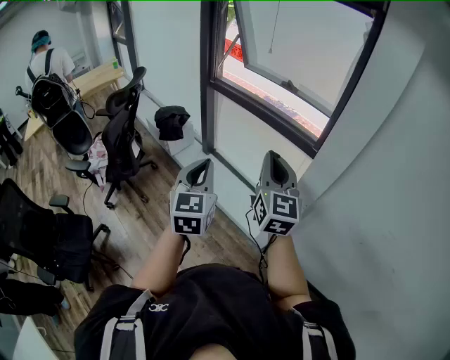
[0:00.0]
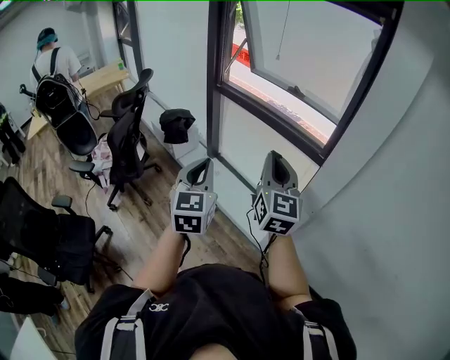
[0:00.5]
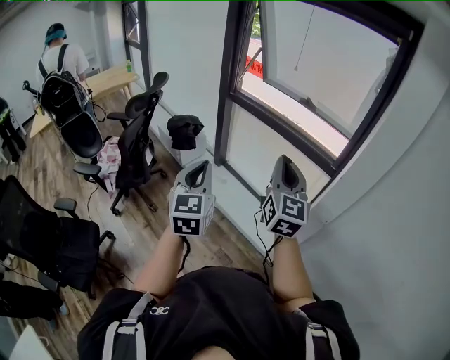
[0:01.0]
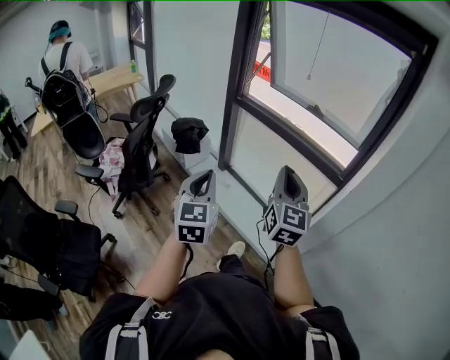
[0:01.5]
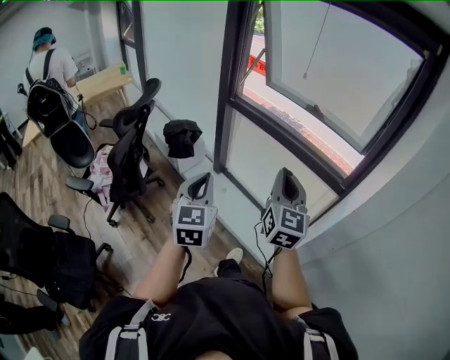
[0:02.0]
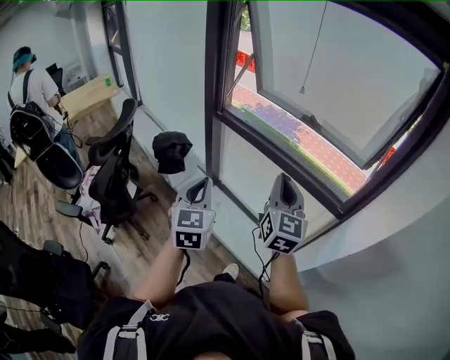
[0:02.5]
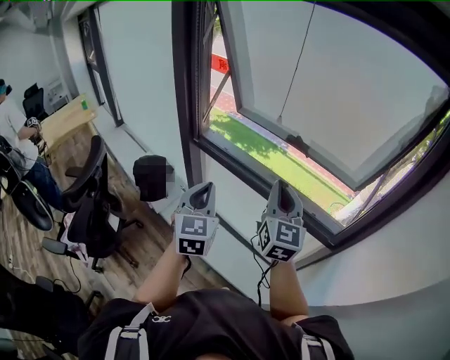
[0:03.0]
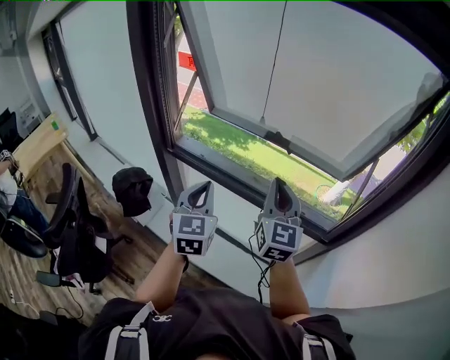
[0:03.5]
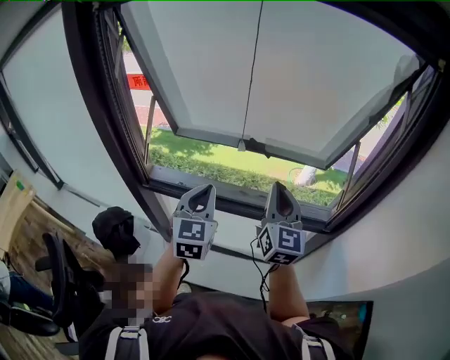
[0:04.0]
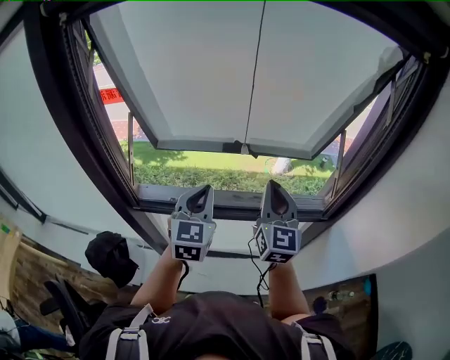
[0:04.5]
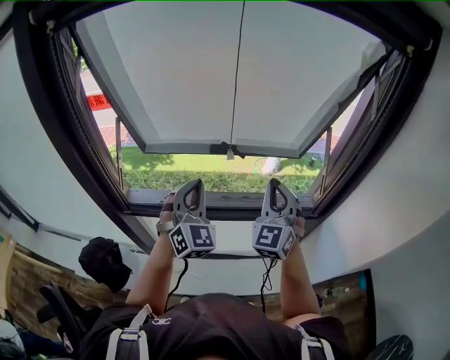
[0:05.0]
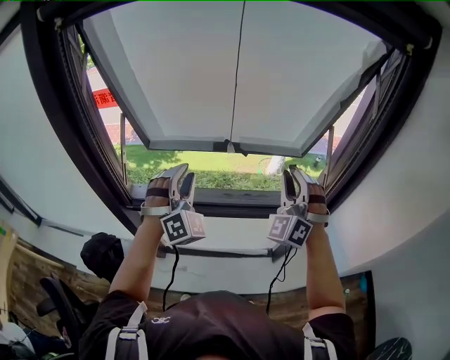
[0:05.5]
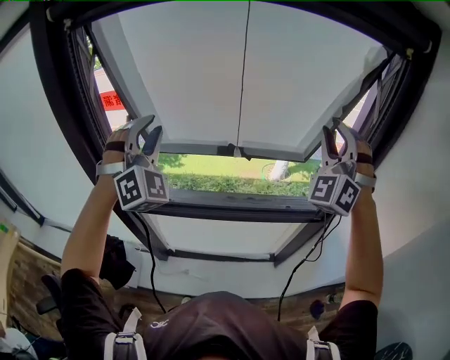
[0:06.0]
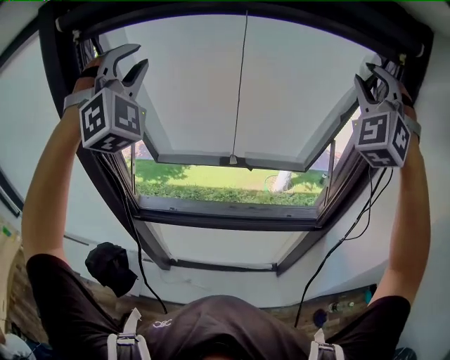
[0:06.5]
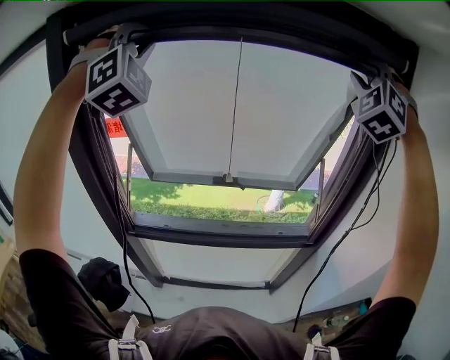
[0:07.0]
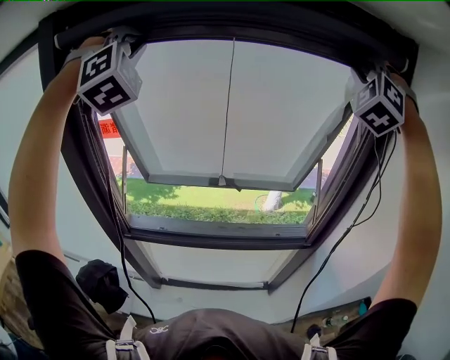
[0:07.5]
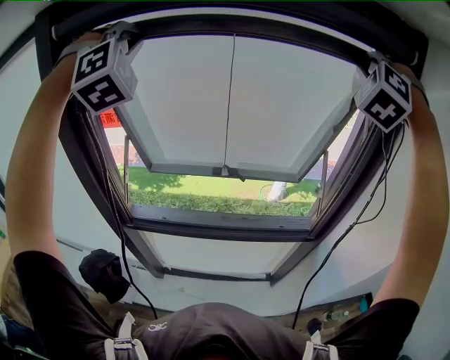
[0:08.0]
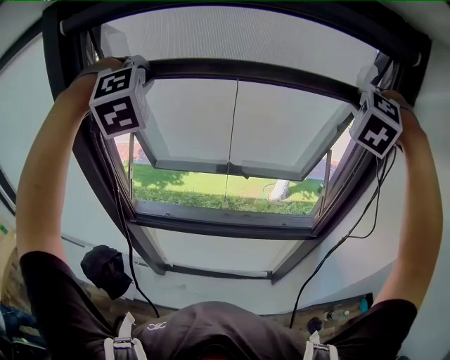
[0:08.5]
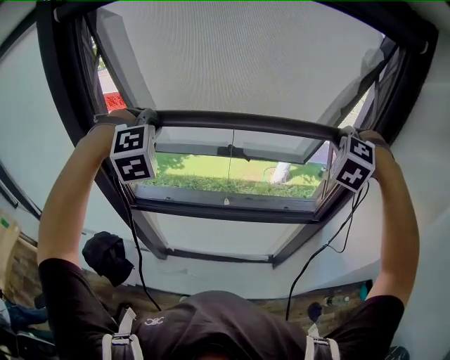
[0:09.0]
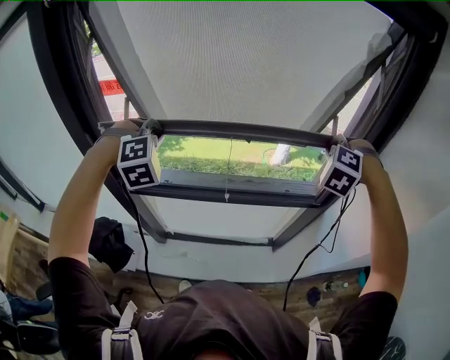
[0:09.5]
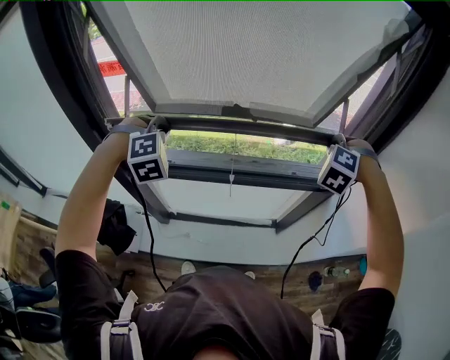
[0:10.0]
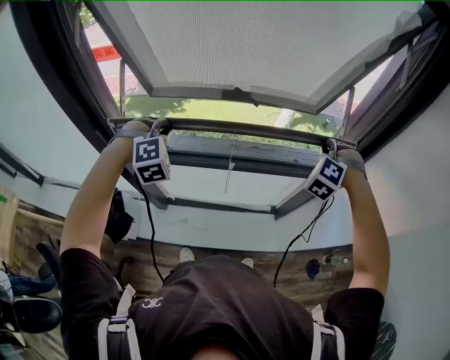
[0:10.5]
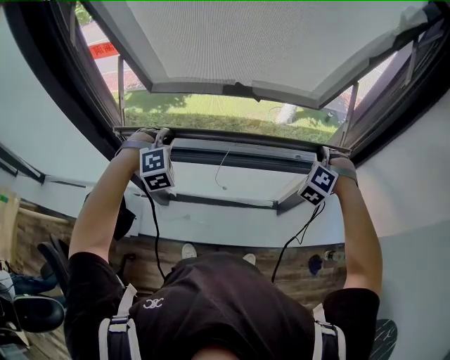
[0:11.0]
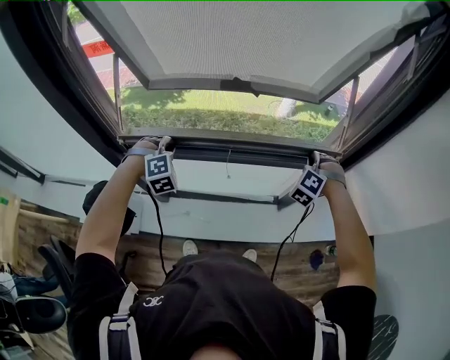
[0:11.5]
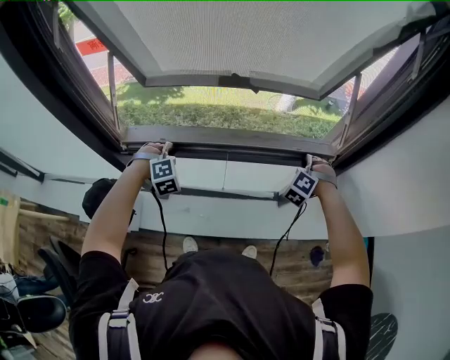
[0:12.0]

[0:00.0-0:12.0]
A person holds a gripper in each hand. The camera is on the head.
0:00.0 to 0:02.0: The two grippers go roughly 20 cm forward and to the left.
0:02.0 to 0:04.0: Both grippers are carried some 50 cm. The right gripper swivels approximately 30 degrees; the left gripper rotates roughly 40 degrees.
0:04.0 to 0:06.0: The left gripper goes some 20 cm upward and to the left, rotates around the line of its fingers by approximately 60 degrees, clockwise from behind, and opens up; the right gripper moves upward and to the right, roughly 20 cm, twists some 80 degrees counterclockwise, seen from behind, and opens its fingers.
0:06.0 to 0:08.0: The two grippers go approximately 25 cm upward. The right gripper turns by approximately 20 degrees, and closes. Meanwhile the left gripper closes.
0:08.0 to 0:10.0: Both grippers move downward, approximately 40 cm. The left gripper angles its fingers downward, by about 40 degrees. The right gripper tilts its fingers some 40 degrees downward.
0:10.0 to 0:12.0: The grippers both shift downward by approximately 25 cm.

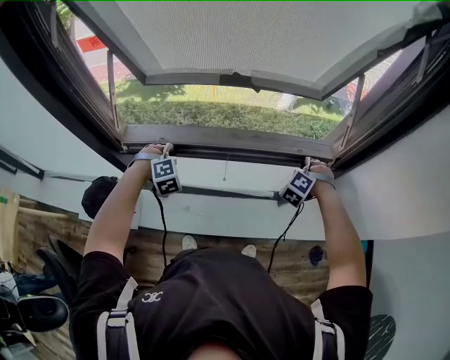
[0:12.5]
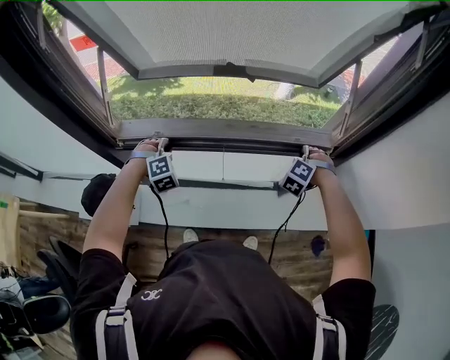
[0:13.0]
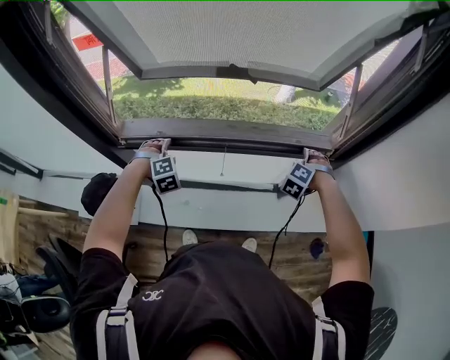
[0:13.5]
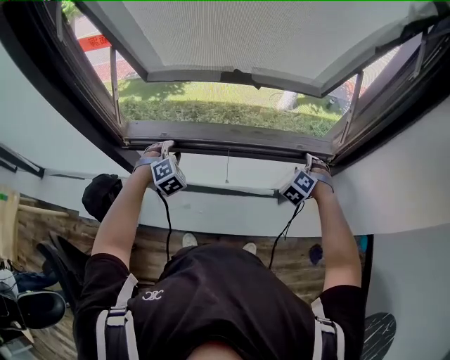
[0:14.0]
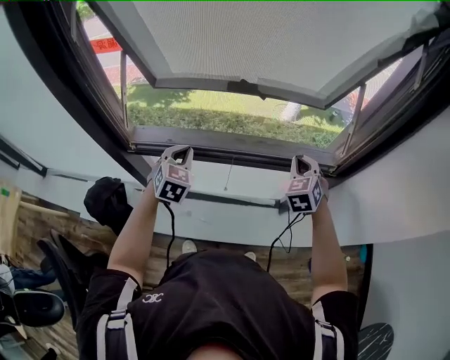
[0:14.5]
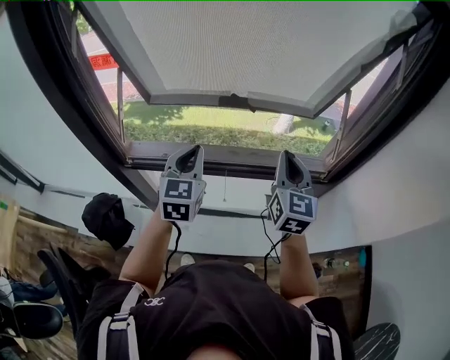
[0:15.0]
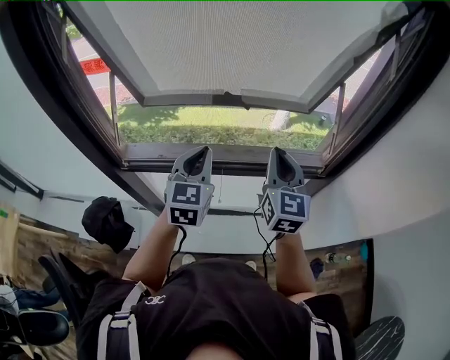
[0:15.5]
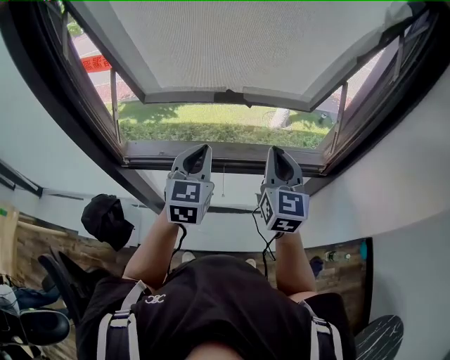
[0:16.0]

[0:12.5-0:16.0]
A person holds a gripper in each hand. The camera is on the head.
0:12.5 to 0:14.5: The left gripper goes approximately 10 cm upward, twists about 50 degrees counterclockwise, seen from behind, and opens and closes again, while the right gripper shifts approximately 15 cm upward and to the left, rotates around the line of its fingers by about 40 degrees, clockwise from behind, and opens and closes again.
0:14.5 to 0:16.0: The left gripper travels upward and to the right by roughly 15 cm, and turns by some 20 degrees. The right gripper travels upward and to the left by approximately 15 cm, and turns by roughly 40 degrees.

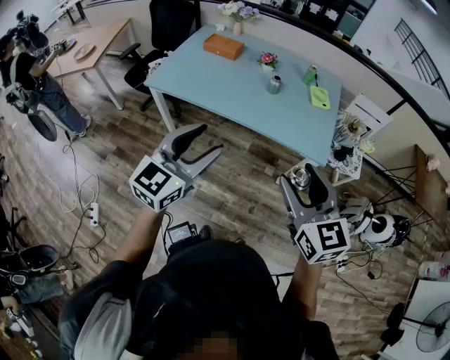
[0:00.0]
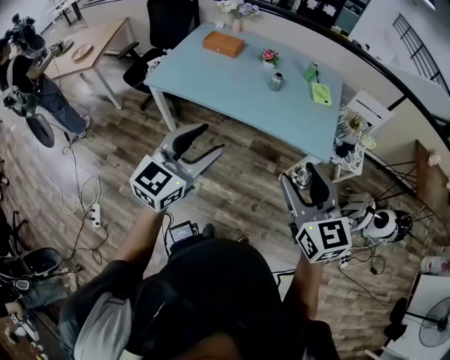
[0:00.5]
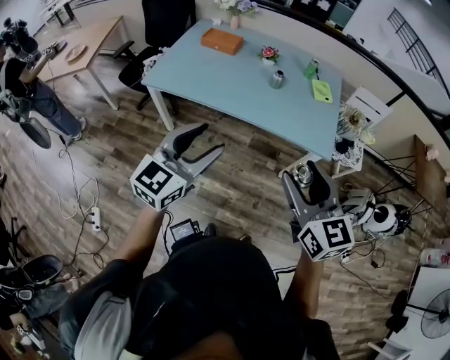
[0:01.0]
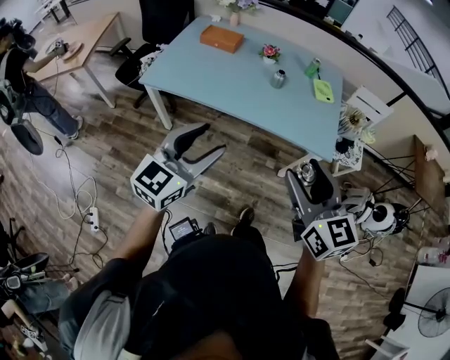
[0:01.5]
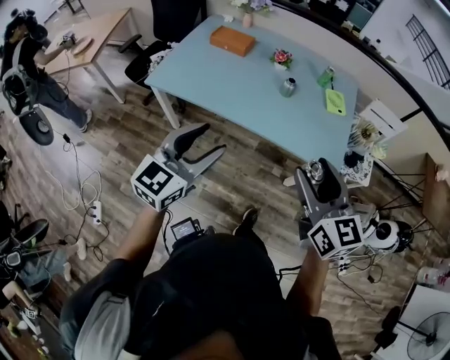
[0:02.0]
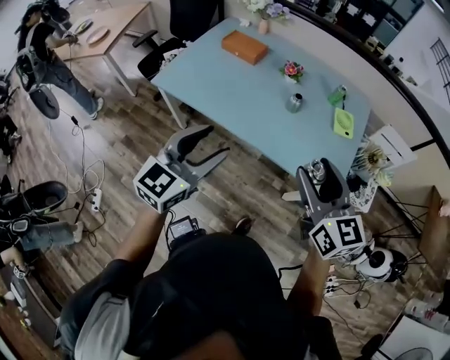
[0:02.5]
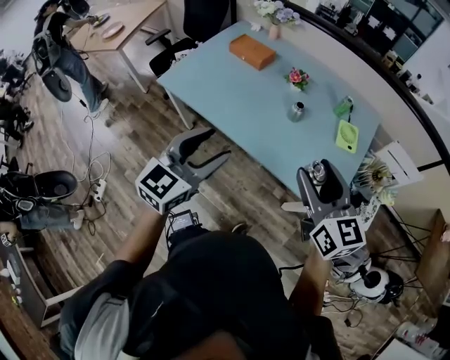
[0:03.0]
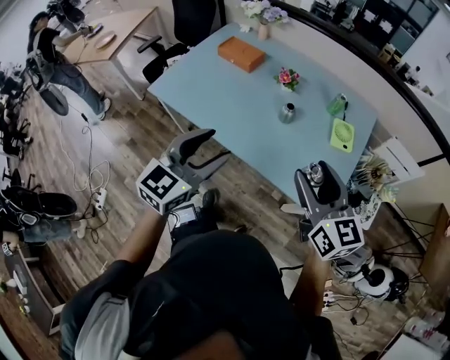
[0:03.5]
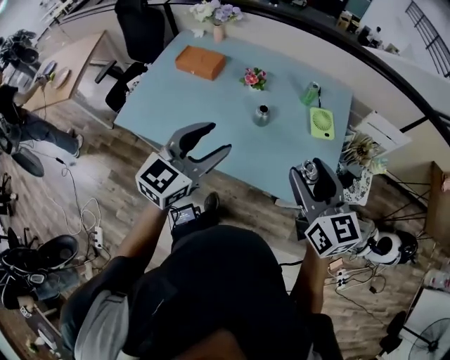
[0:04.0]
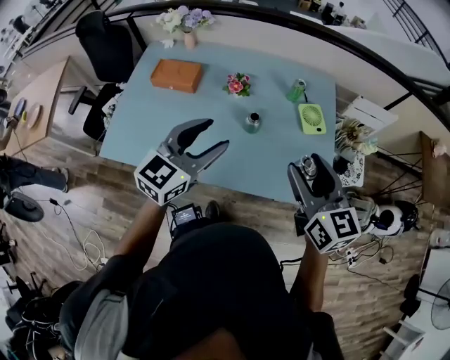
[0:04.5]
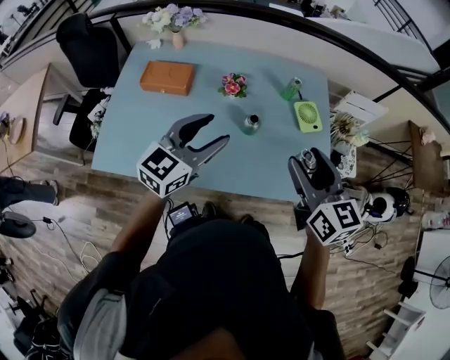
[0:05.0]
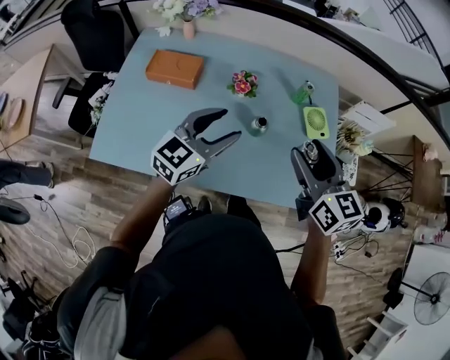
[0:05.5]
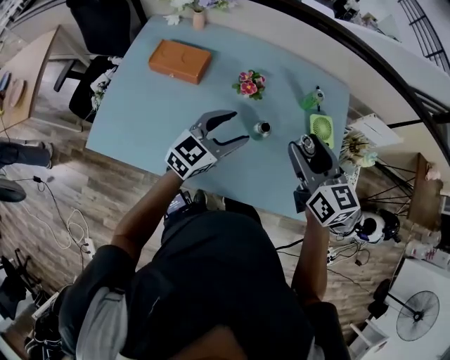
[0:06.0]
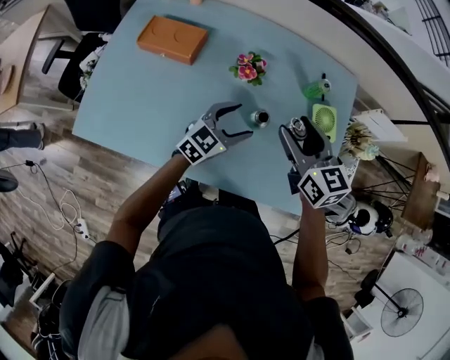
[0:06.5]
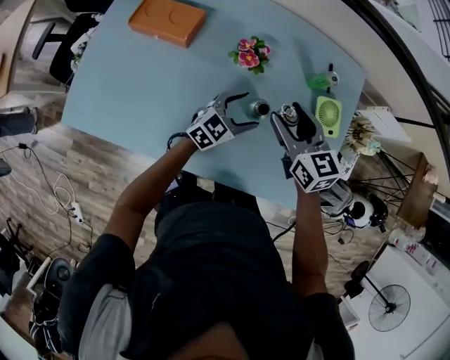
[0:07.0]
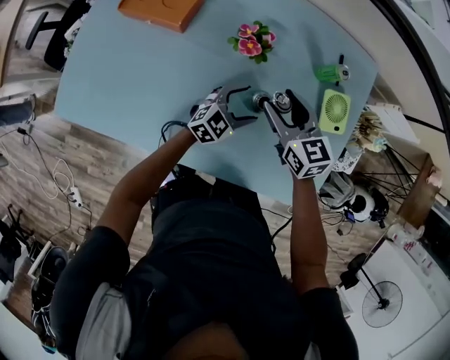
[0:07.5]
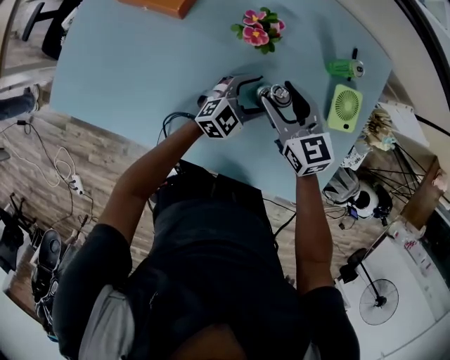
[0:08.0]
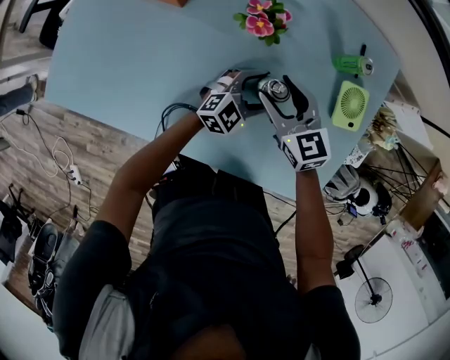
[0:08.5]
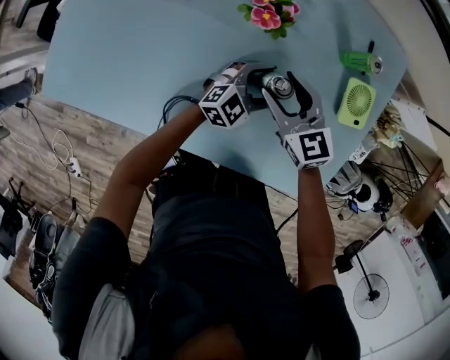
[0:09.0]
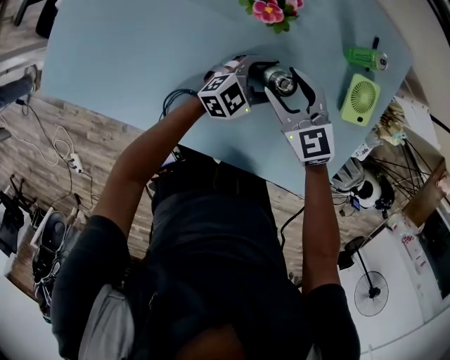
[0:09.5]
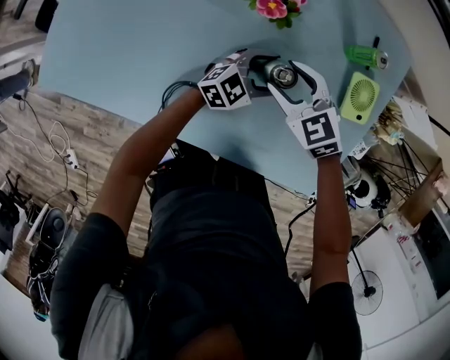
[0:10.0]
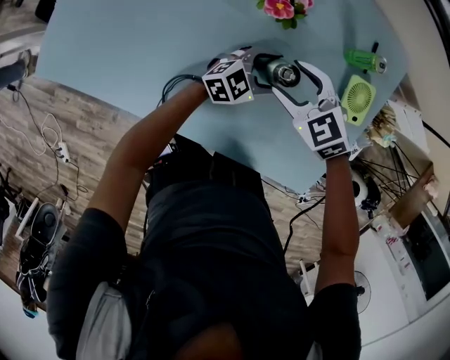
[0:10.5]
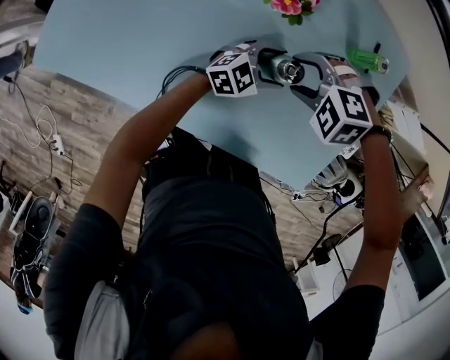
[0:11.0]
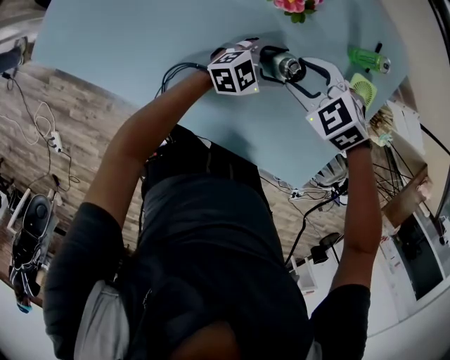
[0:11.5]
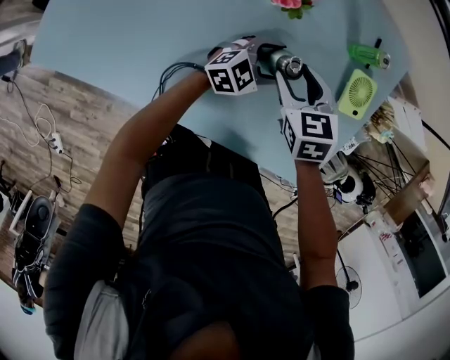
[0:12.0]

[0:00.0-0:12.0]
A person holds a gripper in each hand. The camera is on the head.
0:00.0 to 0:02.0: The grippers both shift forward by about 10 cm.
0:02.0 to 0:04.0: The grippers both shift forward and to the right by about 25 cm.
0:04.0 to 0:06.0: The right gripper goes approximately 25 cm forward and to the left. Meanwhile the left gripper heads forward and downward, covering approximately 25 cm.
0:06.0 to 0:08.0: The right gripper goes about 25 cm downward and forward, and turns by some 20 degrees. The left gripper shifts approximately 30 cm downward and to the right.
0:08.0 to 0:10.0: The right gripper travels downward by some 5 cm, and rotates roughly 30 degrees.
0:10.0 to 0:12.0: The right gripper turns by about 30 degrees.
